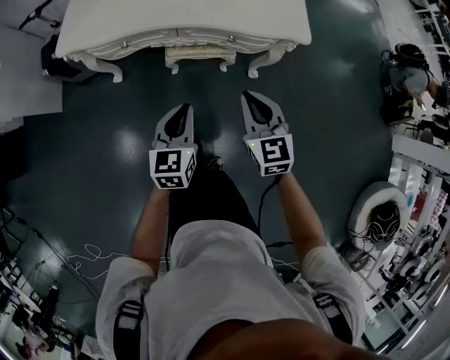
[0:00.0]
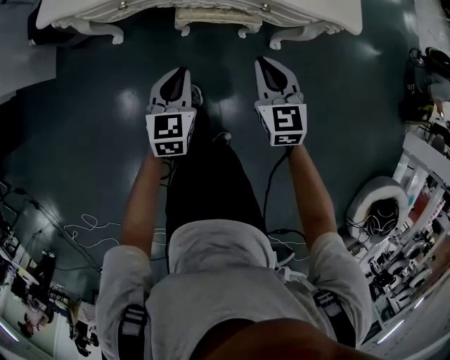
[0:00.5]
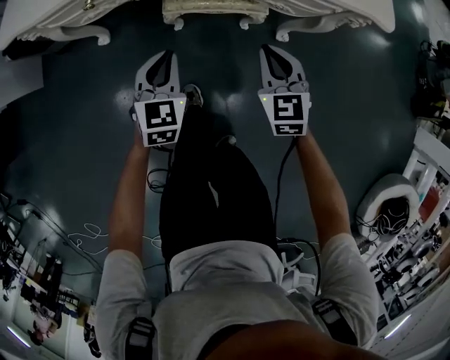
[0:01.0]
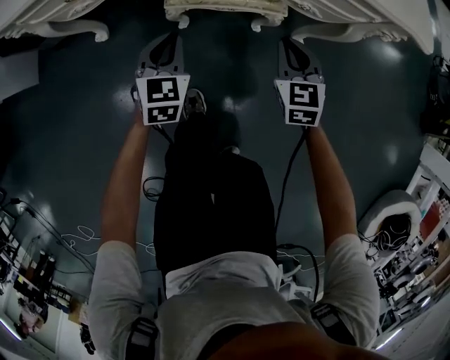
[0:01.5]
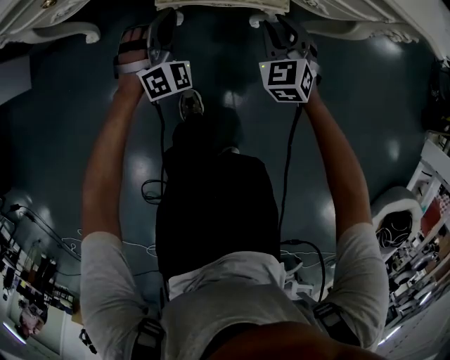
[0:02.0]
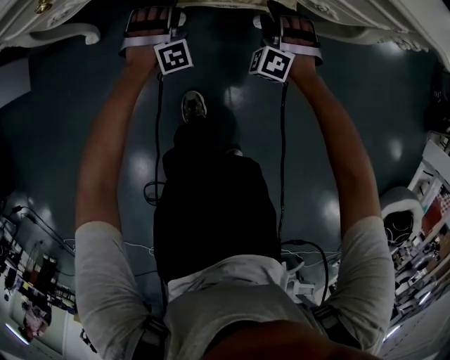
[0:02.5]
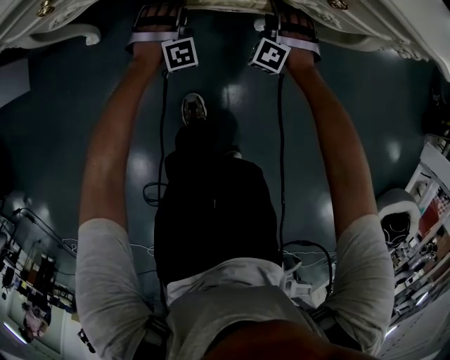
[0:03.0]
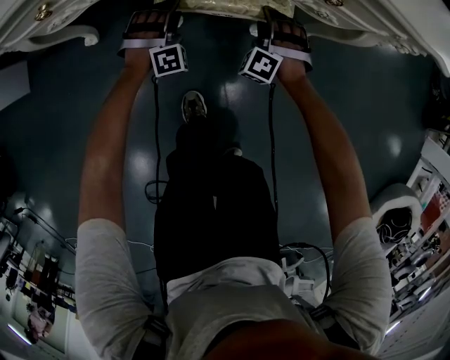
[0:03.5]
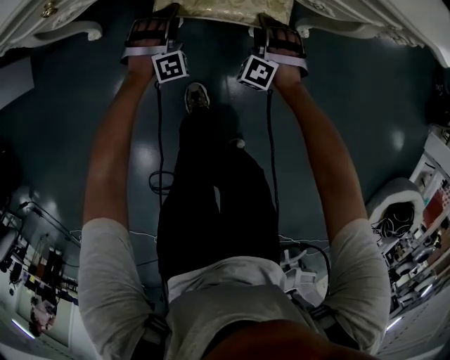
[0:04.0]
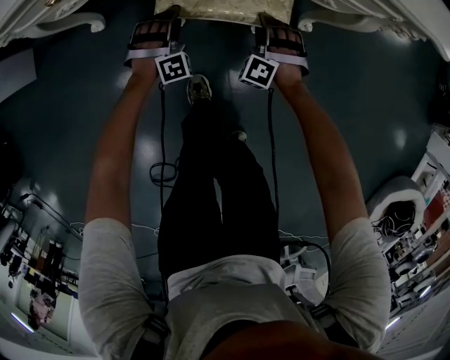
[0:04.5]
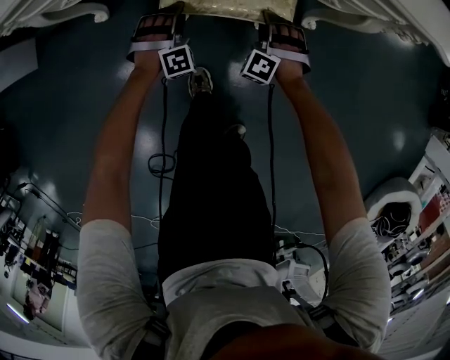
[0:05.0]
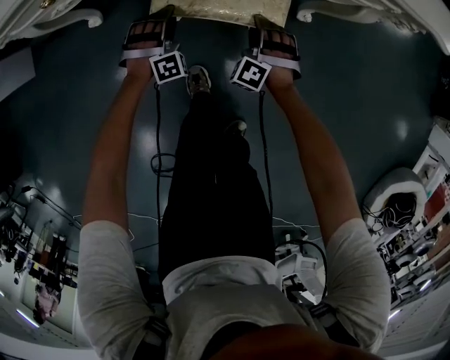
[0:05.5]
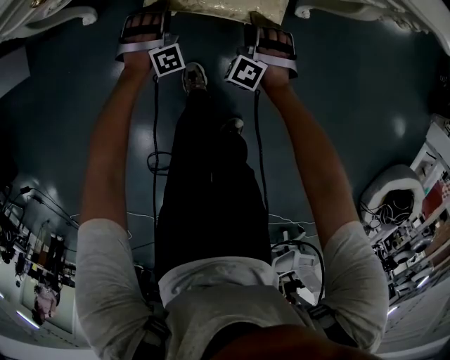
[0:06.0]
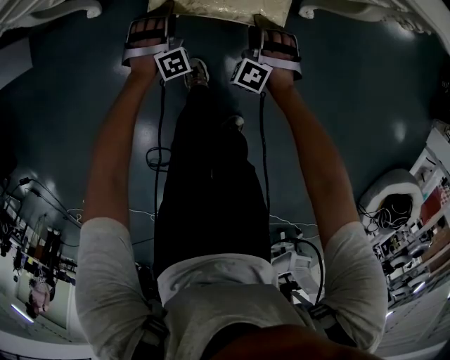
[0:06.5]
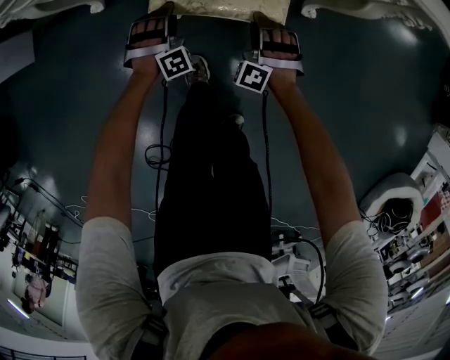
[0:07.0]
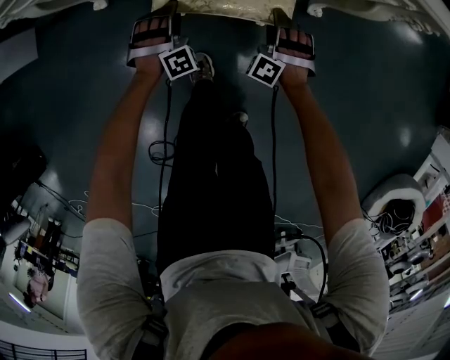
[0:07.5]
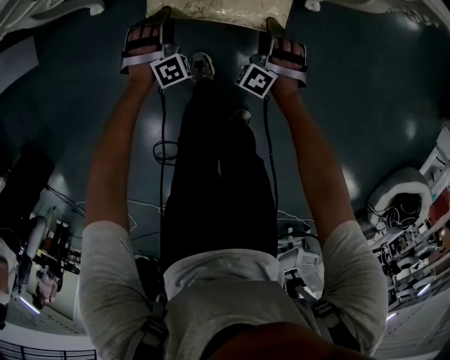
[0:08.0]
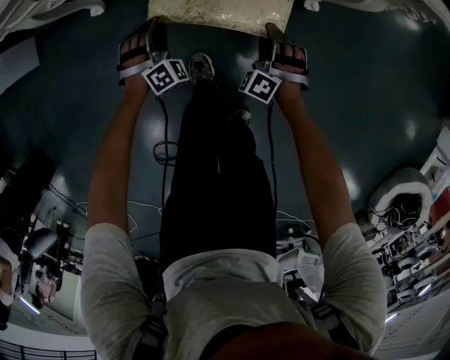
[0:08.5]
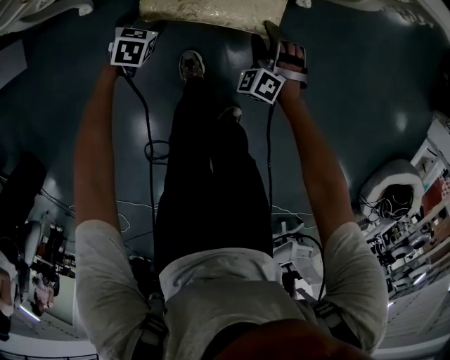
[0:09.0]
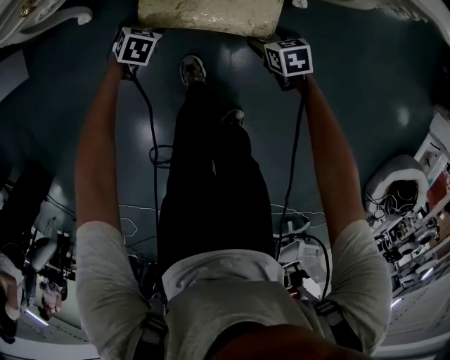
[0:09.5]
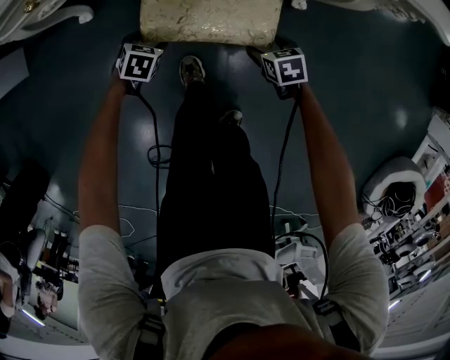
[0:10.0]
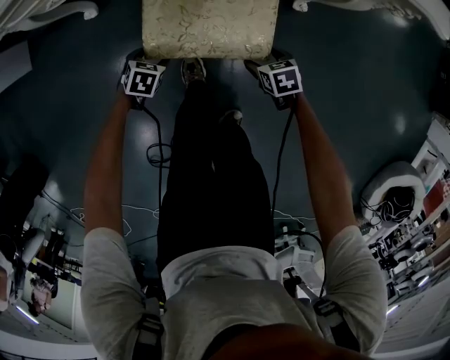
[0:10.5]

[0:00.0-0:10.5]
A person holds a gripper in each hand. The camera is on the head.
0:00.0 to 0:02.0: The grippers both shift downward and forward by roughly 50 cm. The right gripper rotates some 30 degrees; the left gripper rotates around the line of its fingers by some 70 degrees, clockwise from behind.
0:02.0 to 0:04.0: The grippers both shift downward by approximately 10 cm. The right gripper changes its angle by roughly 40 degrees, and opens. Meanwhile the left gripper swivels about 30 degrees, and opens.
0:04.0 to 0:06.5: The two grippers go approximately 5 cm backward.
0:06.5 to 0:08.5: The left gripper moves roughly 5 cm.
0:08.5 to 0:10.5: The left gripper moves approximately 10 cm, tilts its fingers approximately 30 degrees downward, and opens its fingers, while the right gripper shifts by some 10 cm, and twists some 60 degrees clockwise, seen from behind.

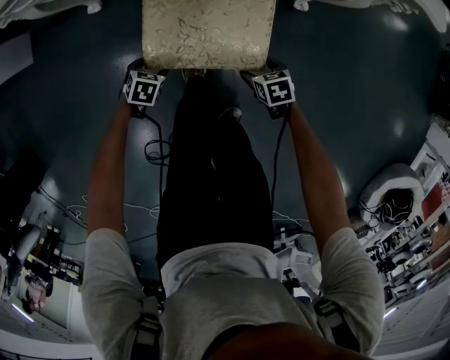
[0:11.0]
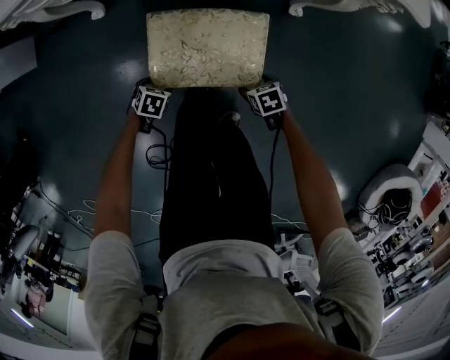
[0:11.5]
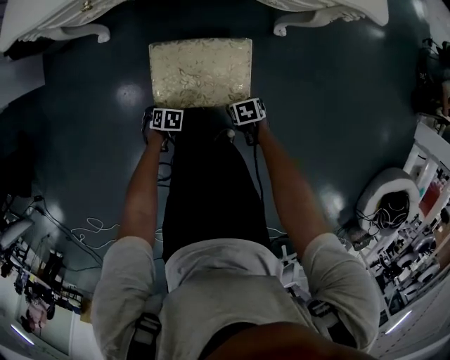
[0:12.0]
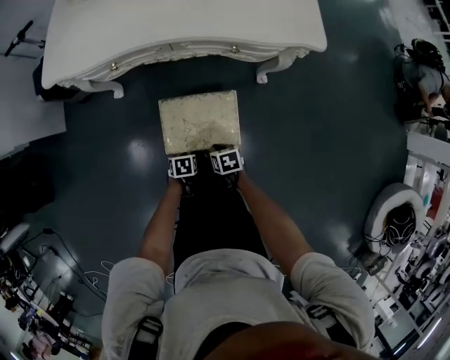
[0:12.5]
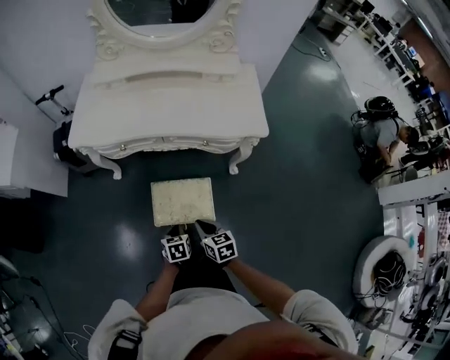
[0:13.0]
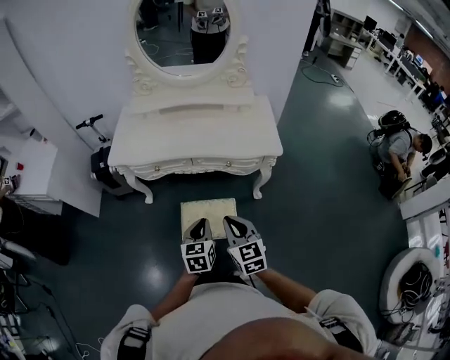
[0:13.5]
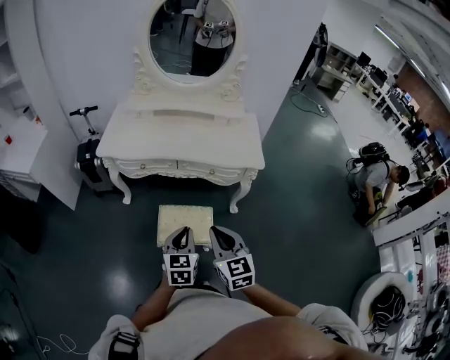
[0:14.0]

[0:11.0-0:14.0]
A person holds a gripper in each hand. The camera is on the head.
0:11.0 to 0:12.5: Both grippers move upward, roughly 15 cm. The left gripper turns by about 20 degrees, and closes its fingers; the right gripper closes its fingers.
0:12.5 to 0:14.0: Both grippers move upward, approximately 50 cm. The left gripper tips its fingers upward by roughly 50 degrees; the right gripper tilts its fingers some 40 degrees upward.

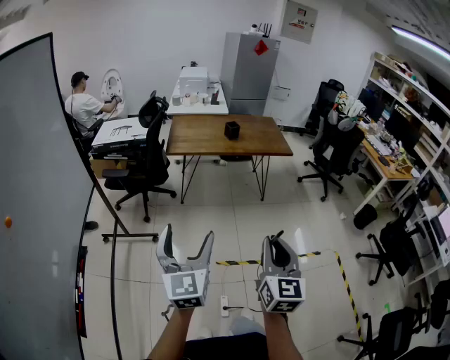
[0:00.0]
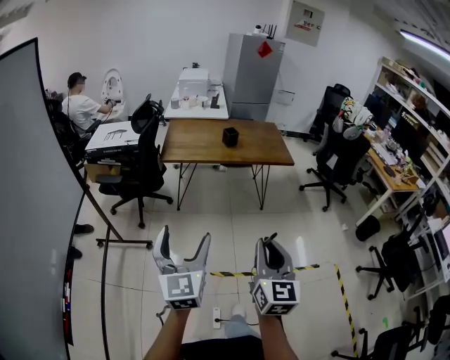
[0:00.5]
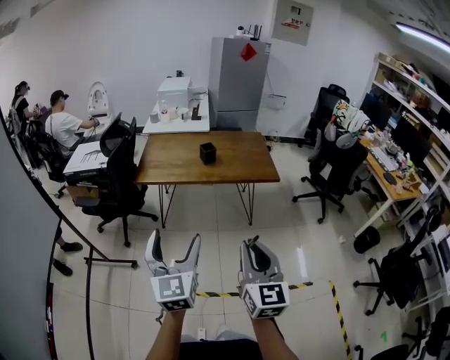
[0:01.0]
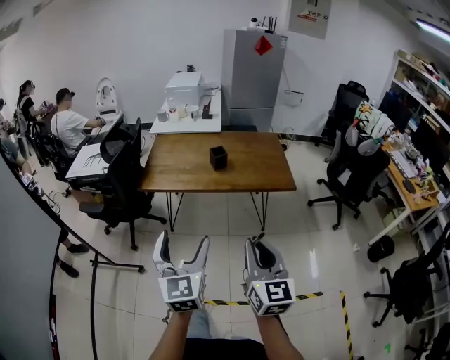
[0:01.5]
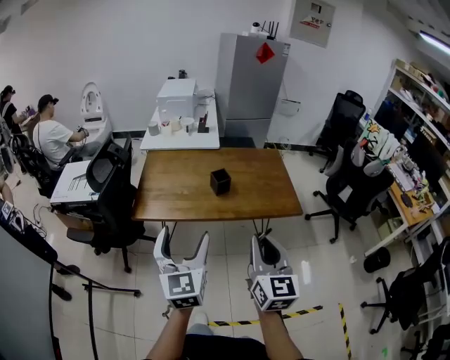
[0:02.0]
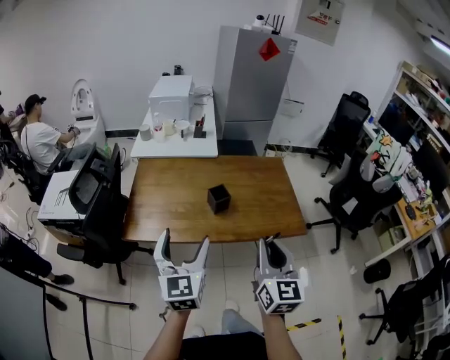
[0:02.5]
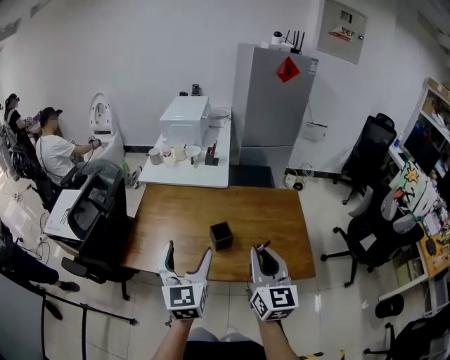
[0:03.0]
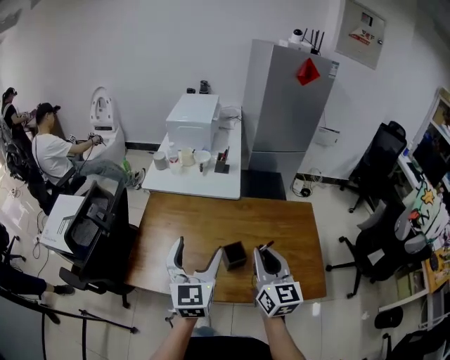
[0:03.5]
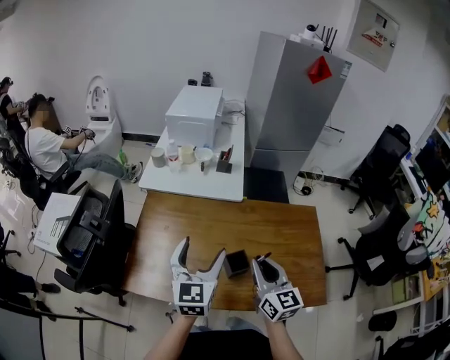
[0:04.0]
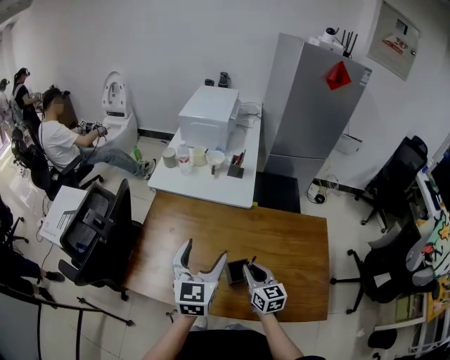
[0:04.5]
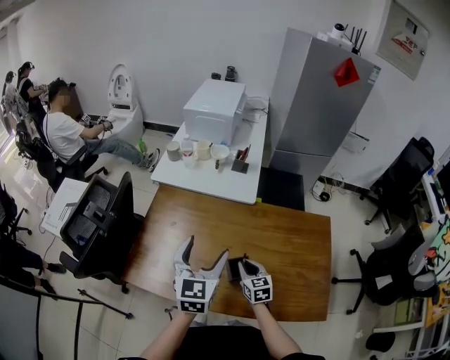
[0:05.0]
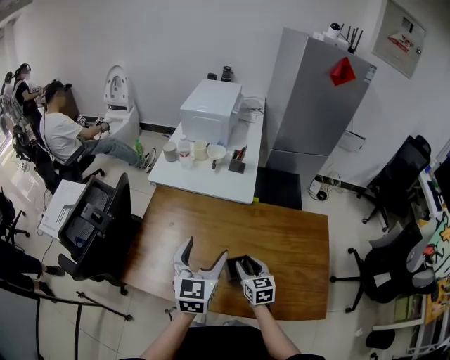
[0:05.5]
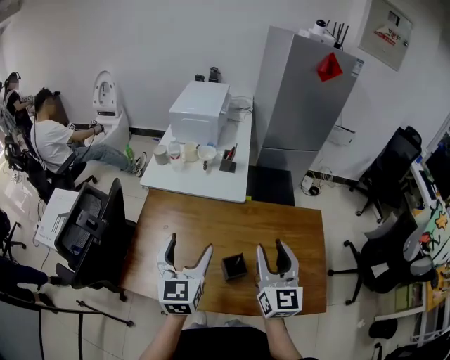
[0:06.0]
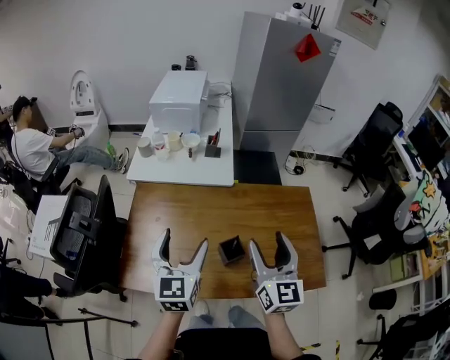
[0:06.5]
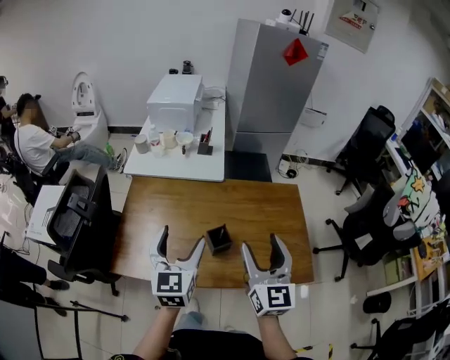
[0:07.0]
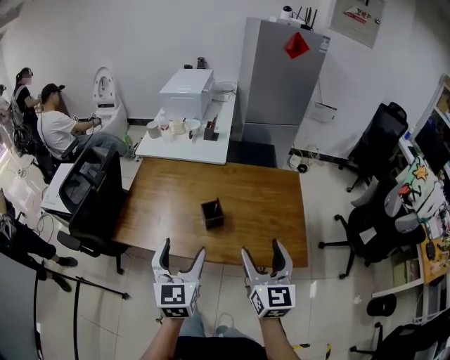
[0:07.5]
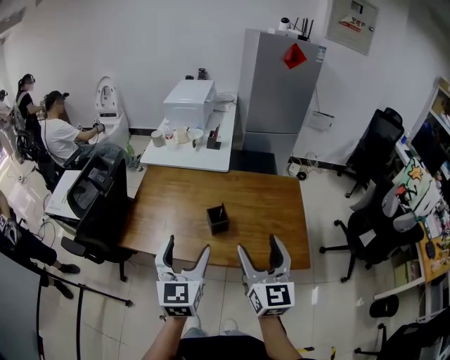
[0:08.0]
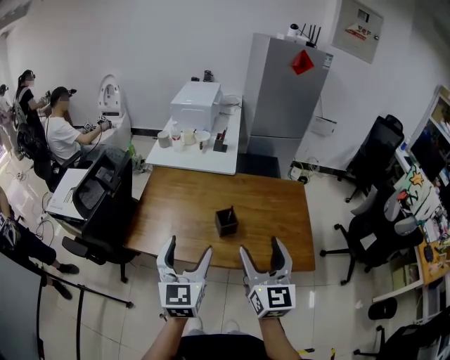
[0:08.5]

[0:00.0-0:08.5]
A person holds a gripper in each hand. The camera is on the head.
0:00.0 to 0:02.0: Both grippers are carried forward, about 60 cm.
0:02.0 to 0:04.0: Both grippers are carried forward, about 50 cm. The right gripper turns by approximately 20 degrees.
0:04.0 to 0:06.5: The right gripper reaches roughly 20 cm downward, then returns, and opens.
0:06.5 to 0:08.5: Both grippers move backward, about 20 cm.

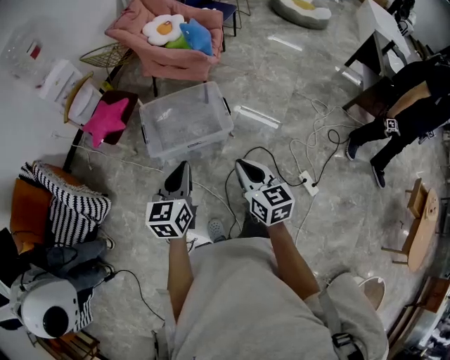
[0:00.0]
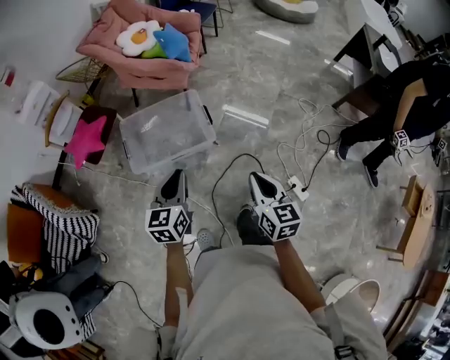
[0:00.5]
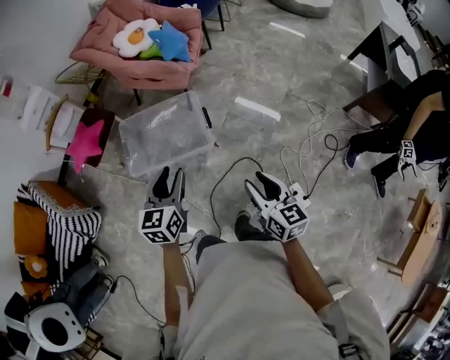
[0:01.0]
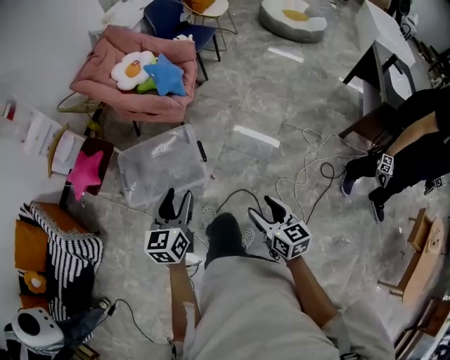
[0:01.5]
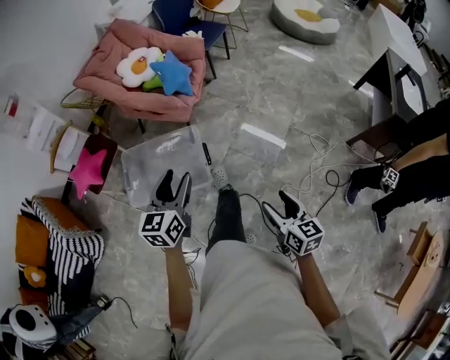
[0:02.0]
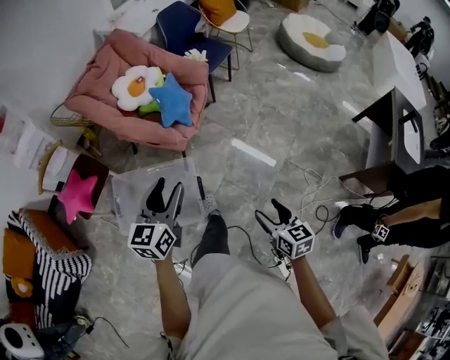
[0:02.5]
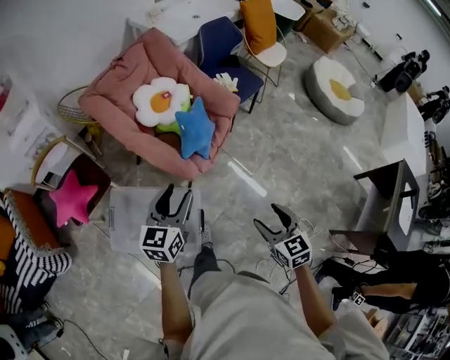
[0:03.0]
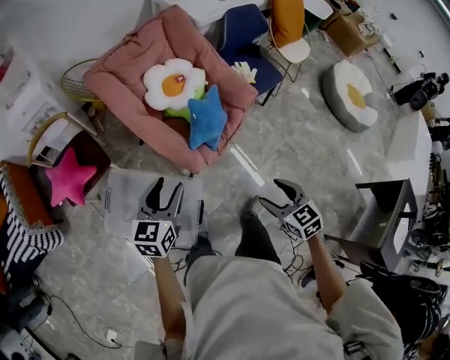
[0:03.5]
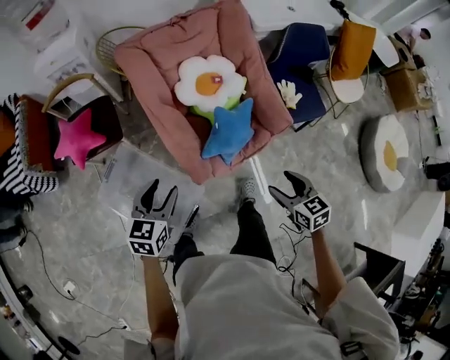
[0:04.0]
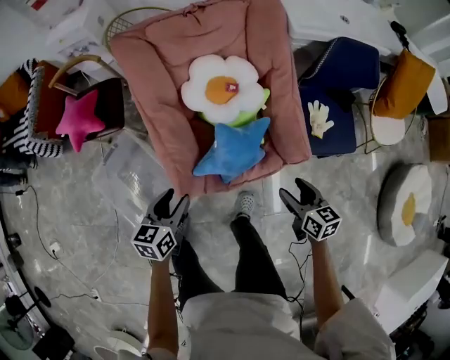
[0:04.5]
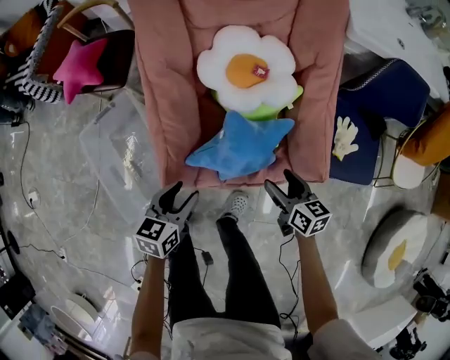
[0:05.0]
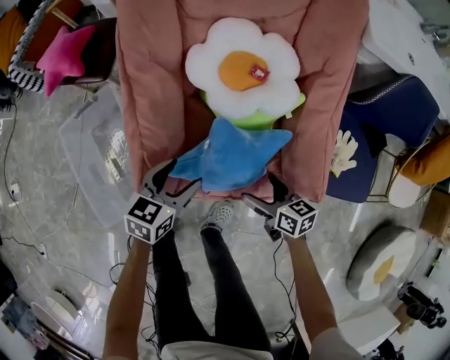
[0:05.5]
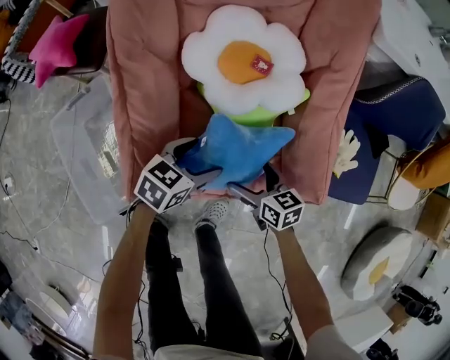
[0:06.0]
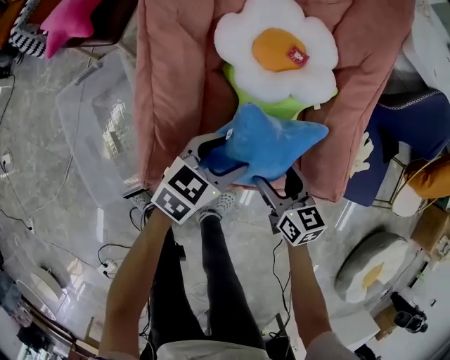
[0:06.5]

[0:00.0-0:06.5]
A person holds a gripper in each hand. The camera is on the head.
0:00.0 to 0:02.0: The left gripper shifts some 40 cm forward and to the right, and opens, while the right gripper is displaced to the right and forward by roughly 40 cm, and opens its fingers.
0:02.0 to 0:04.5: The pair of grippers is taken about 70 cm. The left gripper swivels approximately 50 degrees. Meanwhile the right gripper rotates roughly 60 degrees.
0:04.5 to 0:06.5: The left gripper travels downward, to the right and forward by about 25 cm, while the right gripper is displaced downward and forward by some 20 cm, and changes its angle by some 20 degrees.
